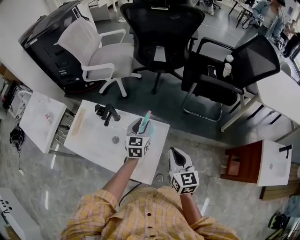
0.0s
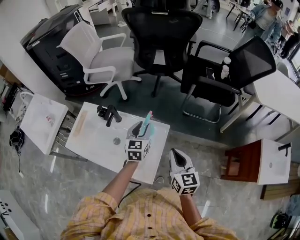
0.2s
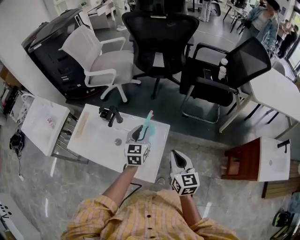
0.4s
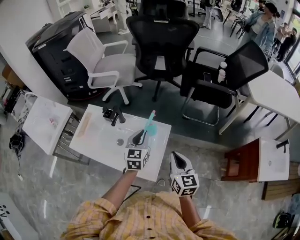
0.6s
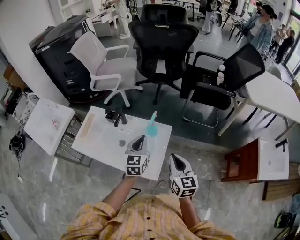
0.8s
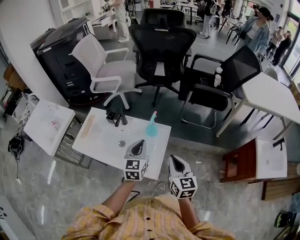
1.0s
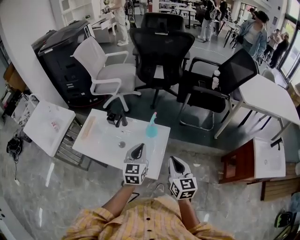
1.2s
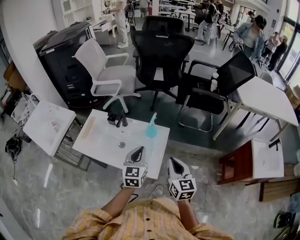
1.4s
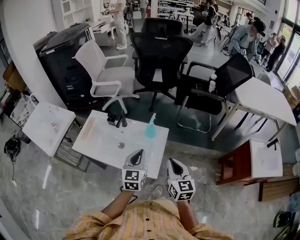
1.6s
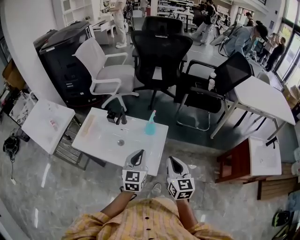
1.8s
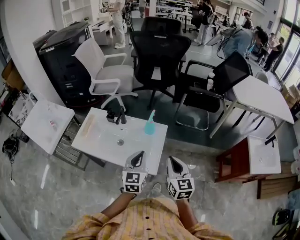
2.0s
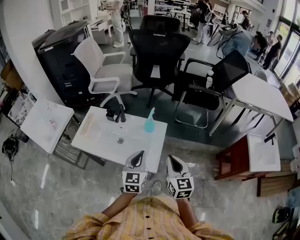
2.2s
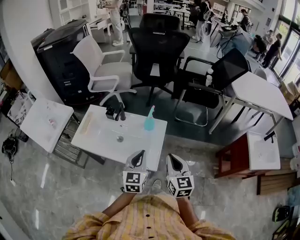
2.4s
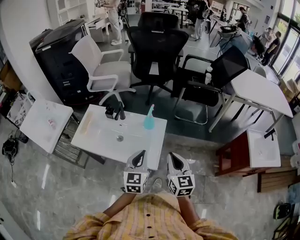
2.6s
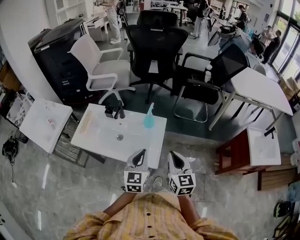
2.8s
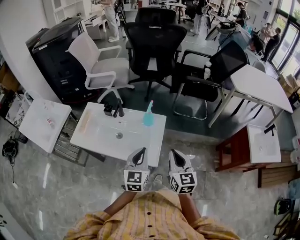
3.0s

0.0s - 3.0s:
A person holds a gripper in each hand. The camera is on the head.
0.0s - 1.6s: The right gripper is displaced backward and upward by roughly 15 cm. Meanwhile the left gripper goes some 25 cm backward and upward, and closes up.
1.6s - 3.0s: The left gripper changes place by about 5 cm.

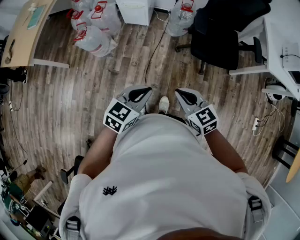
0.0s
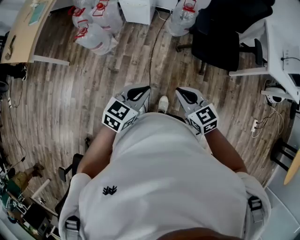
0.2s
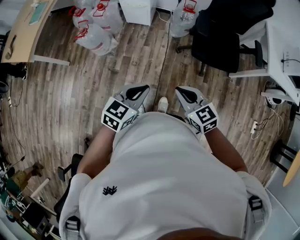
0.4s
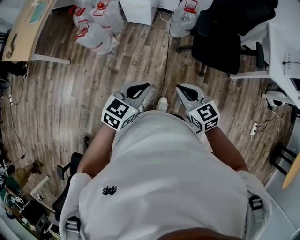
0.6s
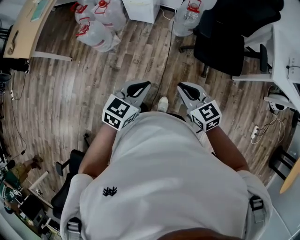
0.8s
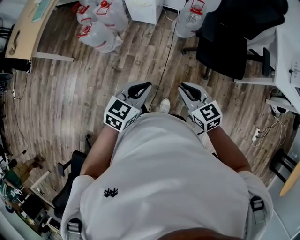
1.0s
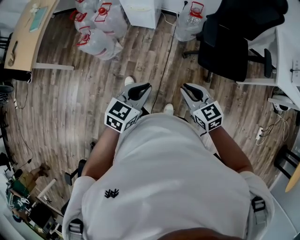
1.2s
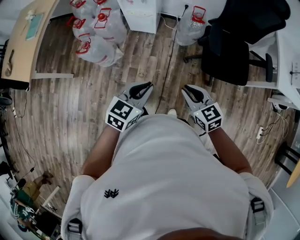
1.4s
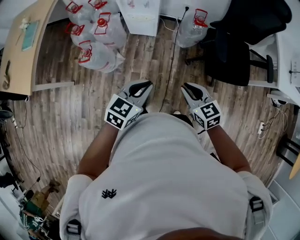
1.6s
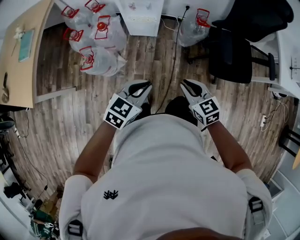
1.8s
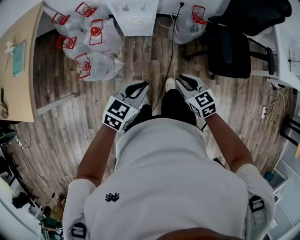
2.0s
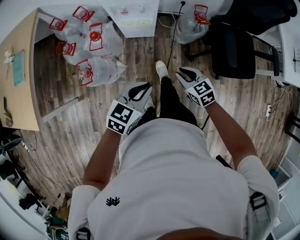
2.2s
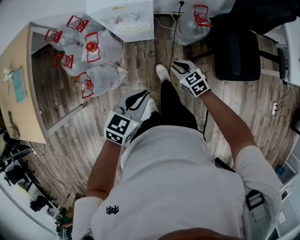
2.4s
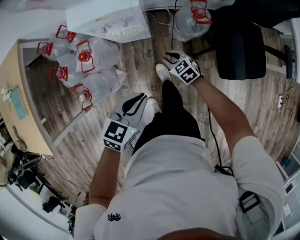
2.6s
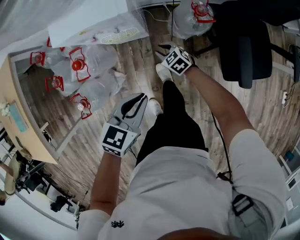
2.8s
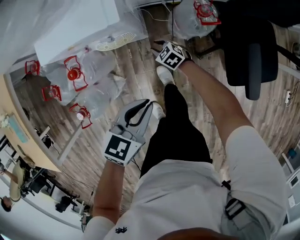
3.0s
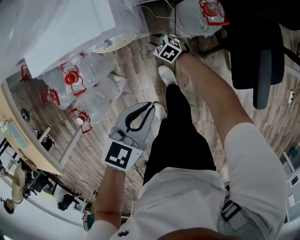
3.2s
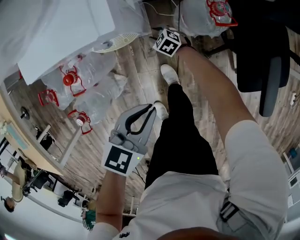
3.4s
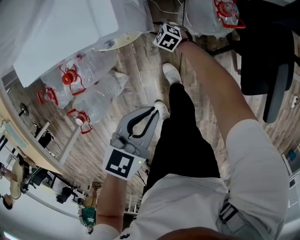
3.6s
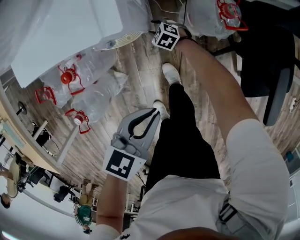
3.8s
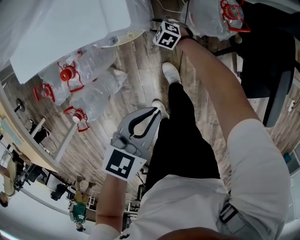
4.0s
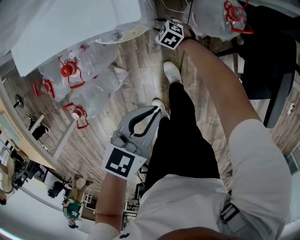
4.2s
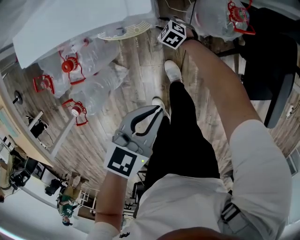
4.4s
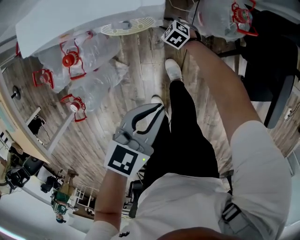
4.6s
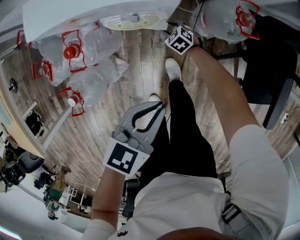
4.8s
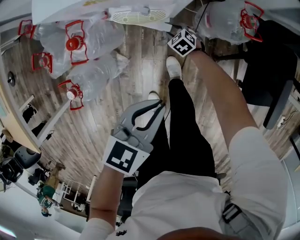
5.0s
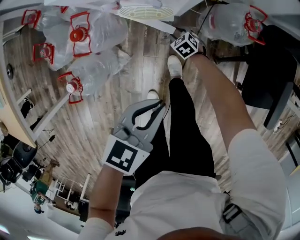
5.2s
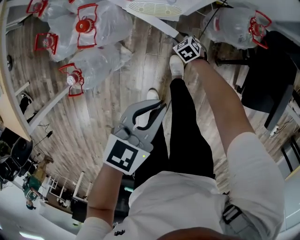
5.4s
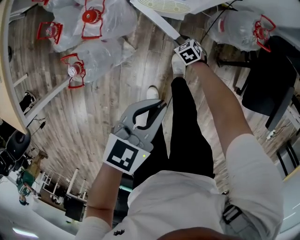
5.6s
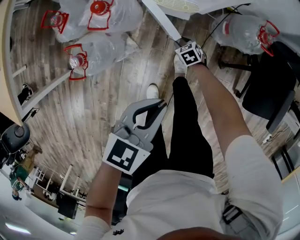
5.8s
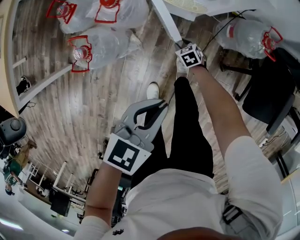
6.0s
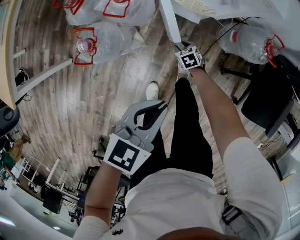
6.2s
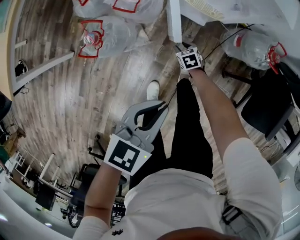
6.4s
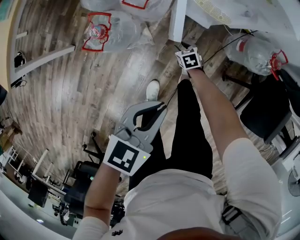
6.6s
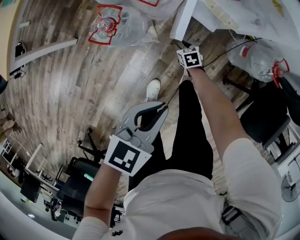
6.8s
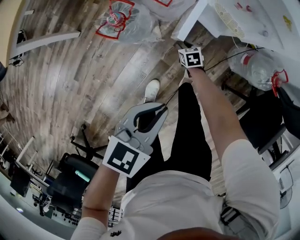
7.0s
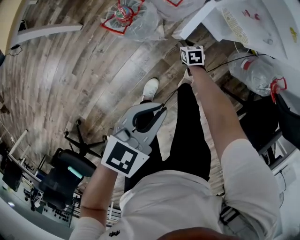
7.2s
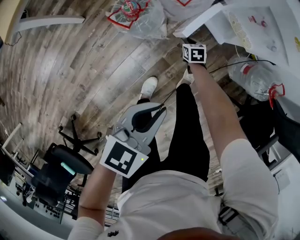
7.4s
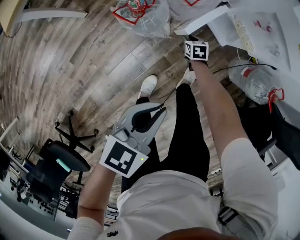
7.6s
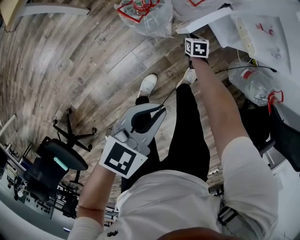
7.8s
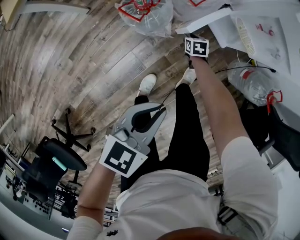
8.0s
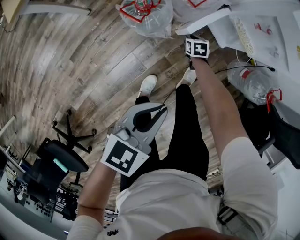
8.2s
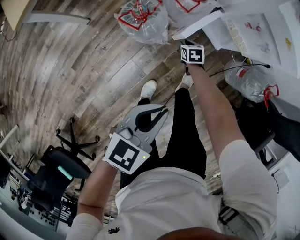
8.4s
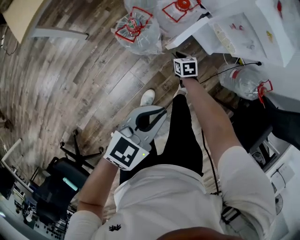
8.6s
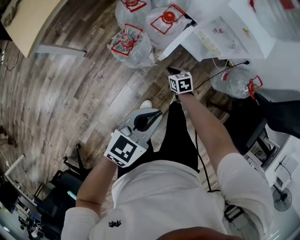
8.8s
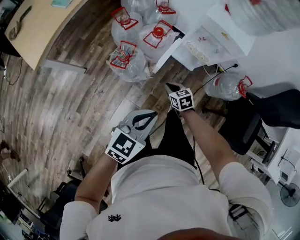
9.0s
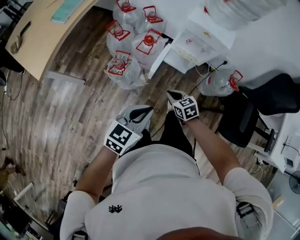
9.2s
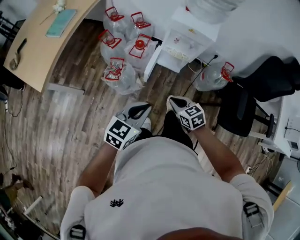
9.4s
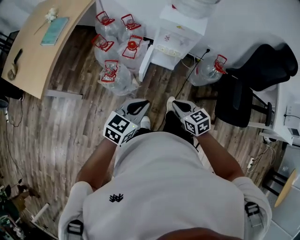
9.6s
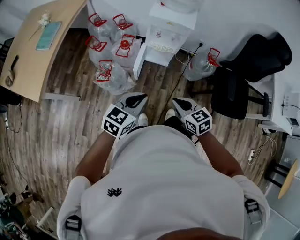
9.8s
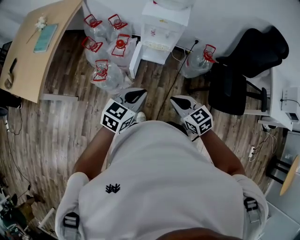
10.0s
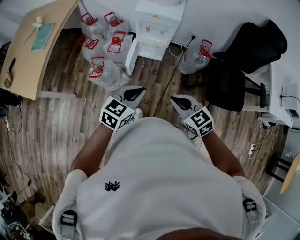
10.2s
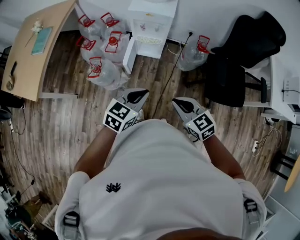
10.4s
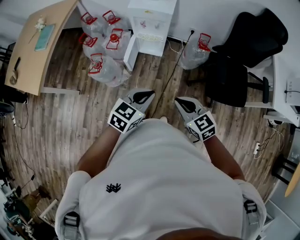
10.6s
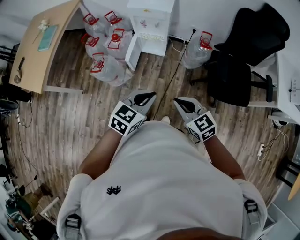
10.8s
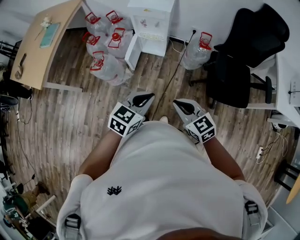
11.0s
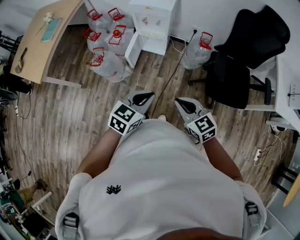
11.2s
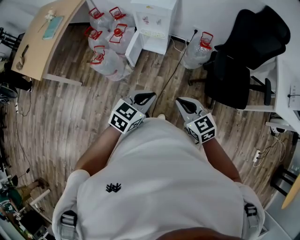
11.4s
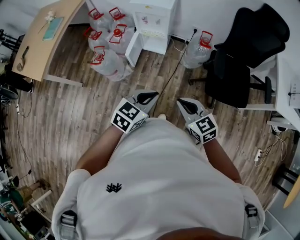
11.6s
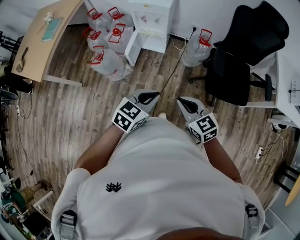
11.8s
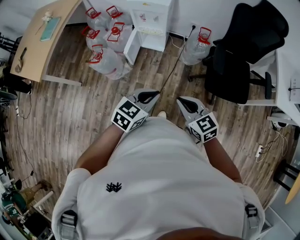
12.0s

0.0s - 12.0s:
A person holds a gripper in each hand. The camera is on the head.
0.0s - 1.6s: The grippers both shift forward and to the left by approximately 25 cm.
1.6s - 3.0s: The right gripper heads forward and downward, covering about 60 cm. The left gripper is displaced forward and downward by roughly 35 cm.
3.0s - 4.4s: The right gripper heads downward and forward, covering about 15 cm. Meanwhile the left gripper moves downward, roughly 5 cm.
4.4s - 6.0s: The right gripper heads backward and to the left, covering some 25 cm. Meanwhile the left gripper travels to the left and backward by roughly 20 cm.
6.0s - 7.6s: The left gripper shifts some 20 cm to the left and backward, and turns by roughly 30 degrees. Meanwhile the right gripper heads to the left, covering approximately 20 cm.
7.6s - 9.0s: The left gripper goes about 10 cm upward, and swivels approximately 20 degrees, while the right gripper is displaced upward and backward by roughly 30 cm, and closes up.
9.0s - 10.4s: The left gripper goes about 20 cm to the right and upward. The right gripper moves upward, backward and to the right, roughly 50 cm, and turns by some 20 degrees.
10.4s - 12.0s: The grippers both shift to the right and backward by roughly 15 cm.

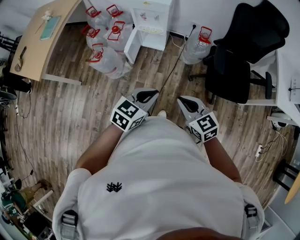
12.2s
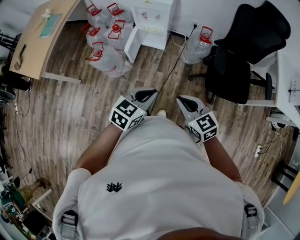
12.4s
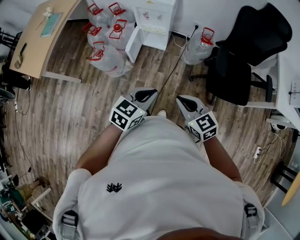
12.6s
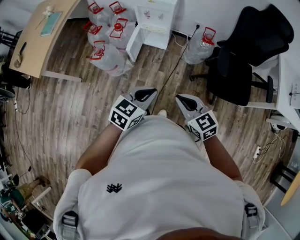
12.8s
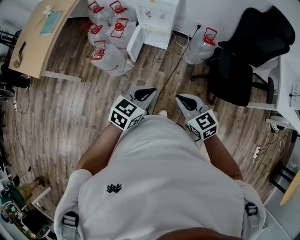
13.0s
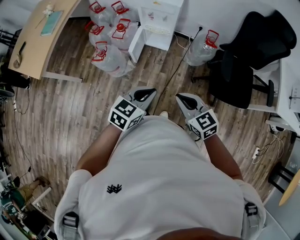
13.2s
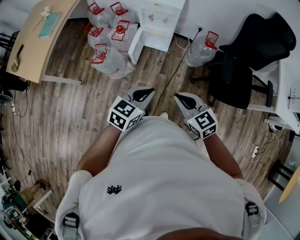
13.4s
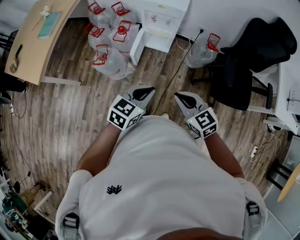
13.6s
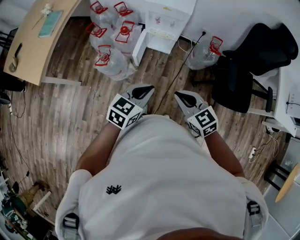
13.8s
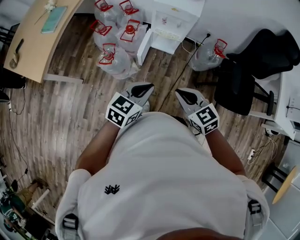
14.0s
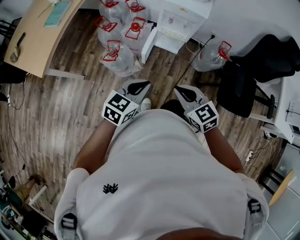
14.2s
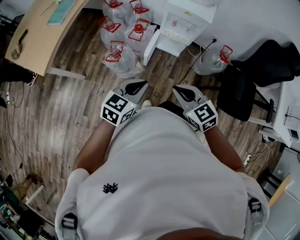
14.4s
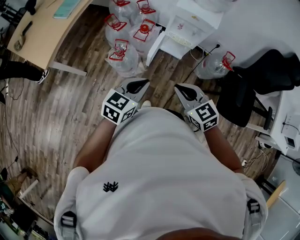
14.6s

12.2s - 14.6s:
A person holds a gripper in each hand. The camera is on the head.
12.2s - 13.4s: The grippers both shift to the left and forward by approximately 10 cm.
13.4s - 14.6s: Both grippers travel together to the left and forward, roughly 20 cm.

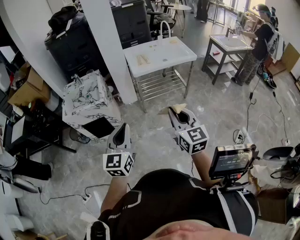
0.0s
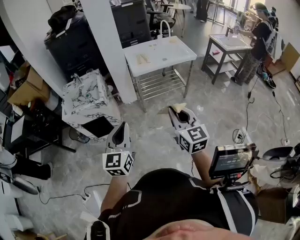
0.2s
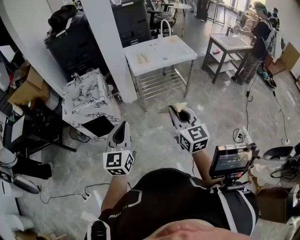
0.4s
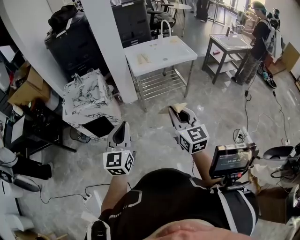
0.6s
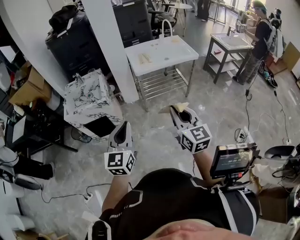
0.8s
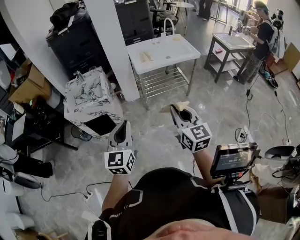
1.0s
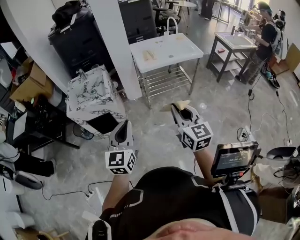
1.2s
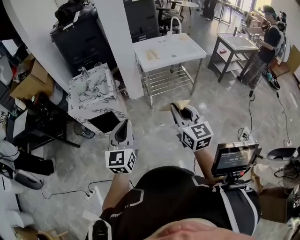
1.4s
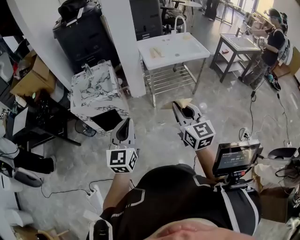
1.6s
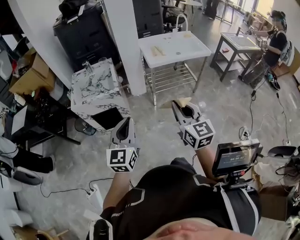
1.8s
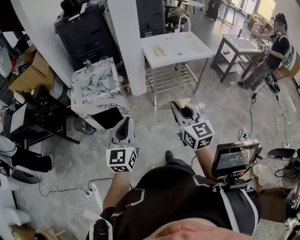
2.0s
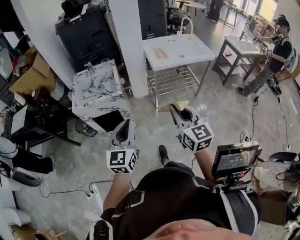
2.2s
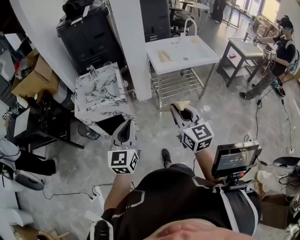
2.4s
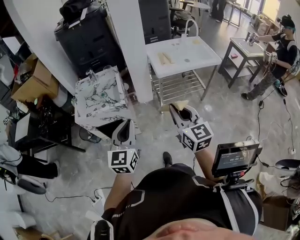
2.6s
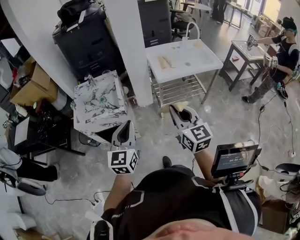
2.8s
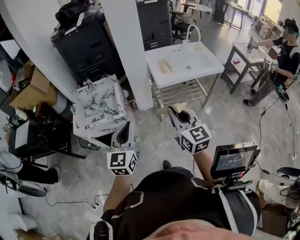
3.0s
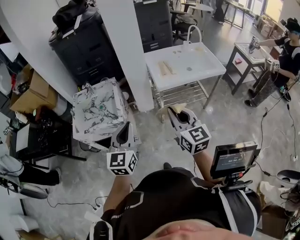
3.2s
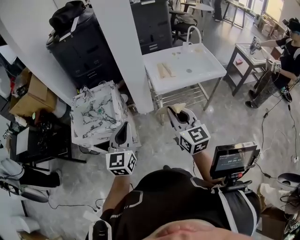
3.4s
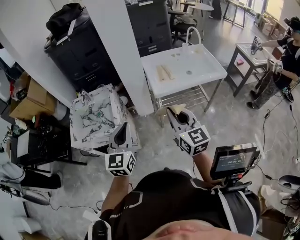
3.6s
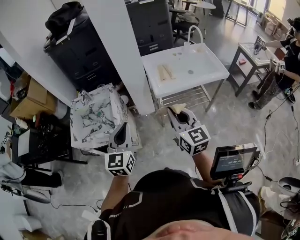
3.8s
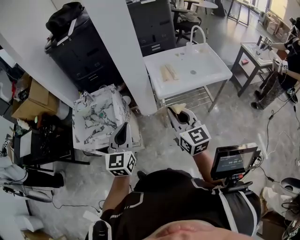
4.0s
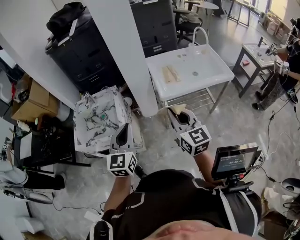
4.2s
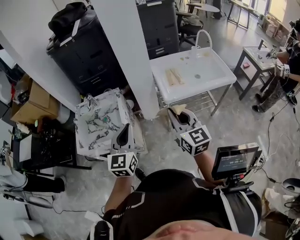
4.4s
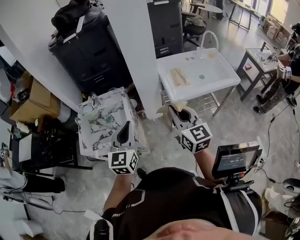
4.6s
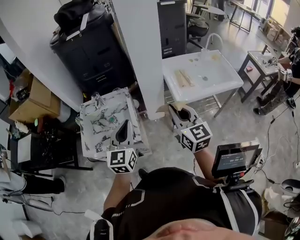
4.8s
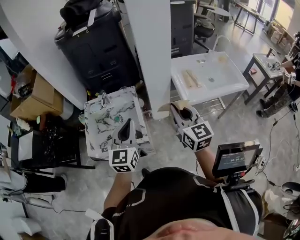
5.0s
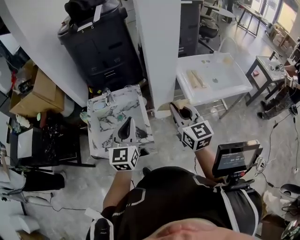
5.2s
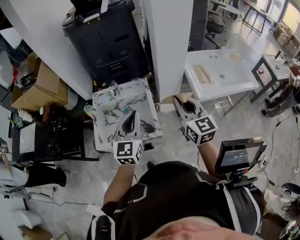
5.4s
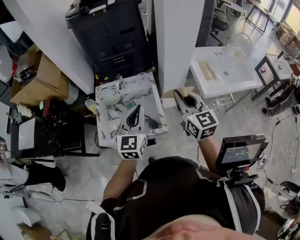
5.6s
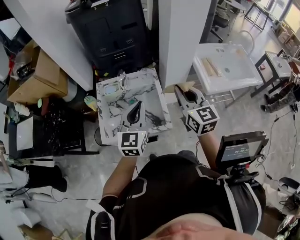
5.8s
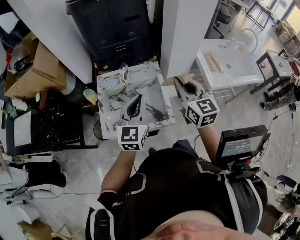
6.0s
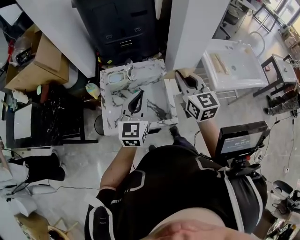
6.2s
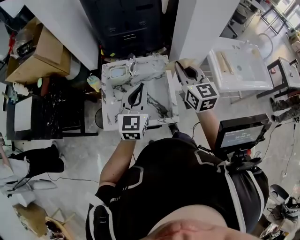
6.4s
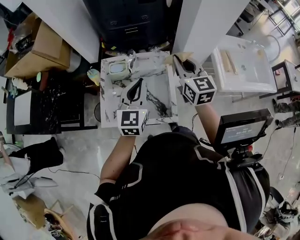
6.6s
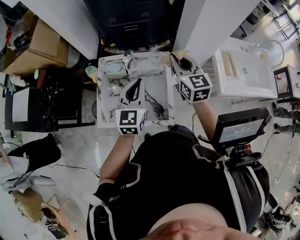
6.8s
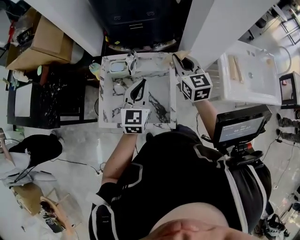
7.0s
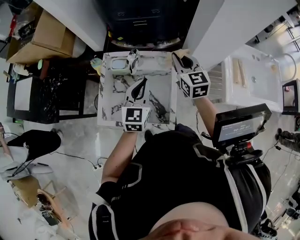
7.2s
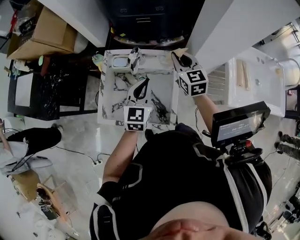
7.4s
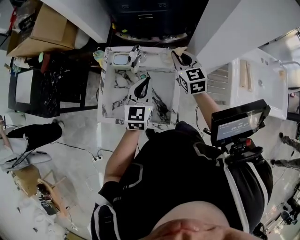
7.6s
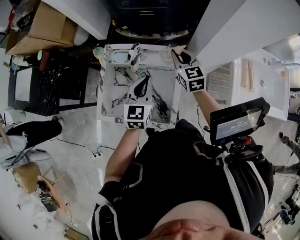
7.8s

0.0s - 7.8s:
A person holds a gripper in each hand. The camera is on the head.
0.0s - 1.6s: Both grippers travel together to the left, some 10 cm.
1.6s - 3.2s: Both grippers travel together forward, some 25 cm.
3.2s - 4.6s: Both grippers travel together forward, about 15 cm.
4.6s - 6.2s: Both grippers travel together to the left and forward, about 25 cm.
6.2s - 7.8s: The left gripper moves forward and downward, some 20 cm, and changes its angle by approximately 20 degrees. The right gripper is displaced forward and downward by about 30 cm, and swivels roughly 20 degrees.
